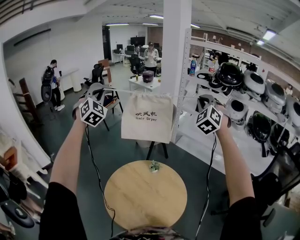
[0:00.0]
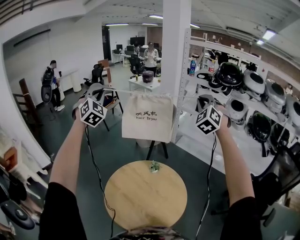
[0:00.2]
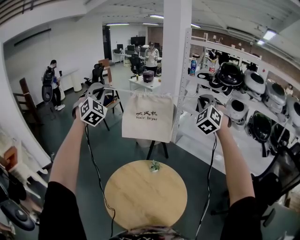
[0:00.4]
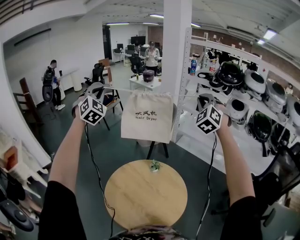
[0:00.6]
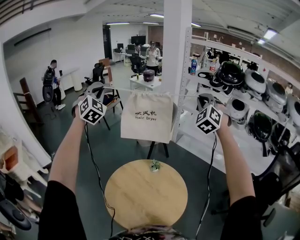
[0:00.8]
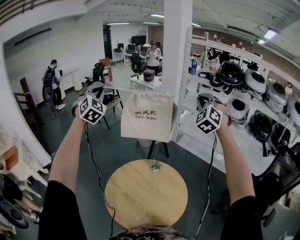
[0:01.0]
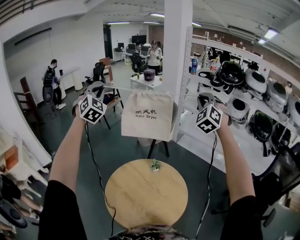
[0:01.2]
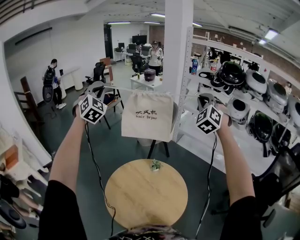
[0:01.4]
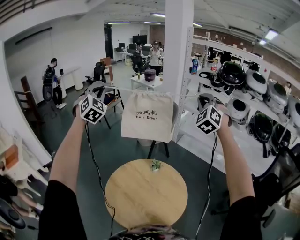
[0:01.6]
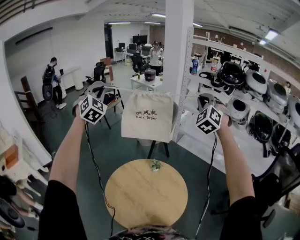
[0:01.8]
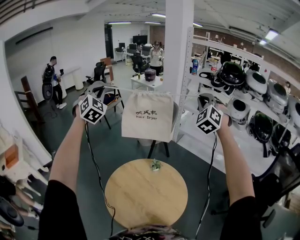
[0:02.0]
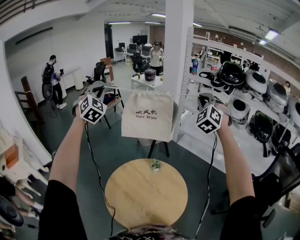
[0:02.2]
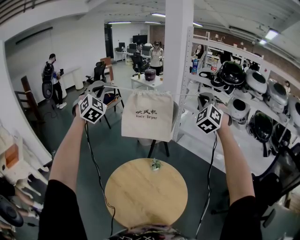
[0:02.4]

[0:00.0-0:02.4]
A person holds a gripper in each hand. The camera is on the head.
0:00.0 to 0:02.4: Neither gripper changes place.

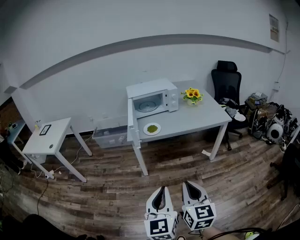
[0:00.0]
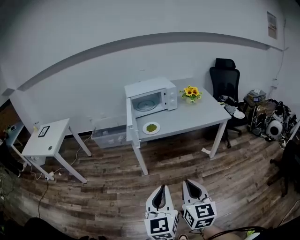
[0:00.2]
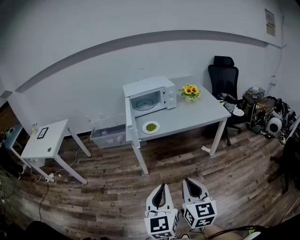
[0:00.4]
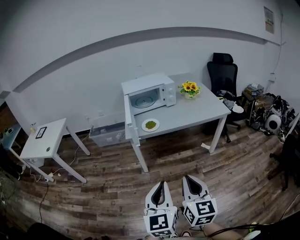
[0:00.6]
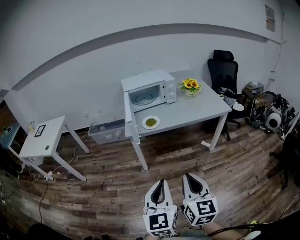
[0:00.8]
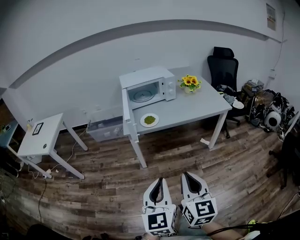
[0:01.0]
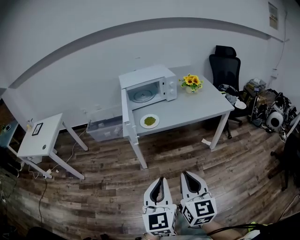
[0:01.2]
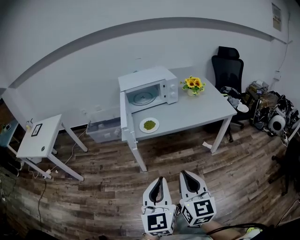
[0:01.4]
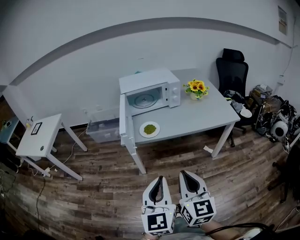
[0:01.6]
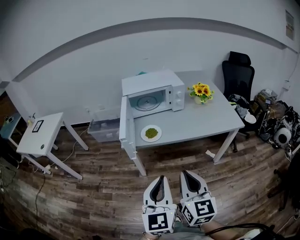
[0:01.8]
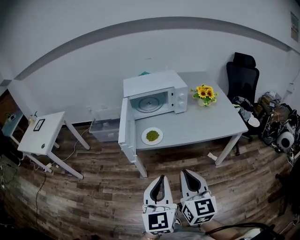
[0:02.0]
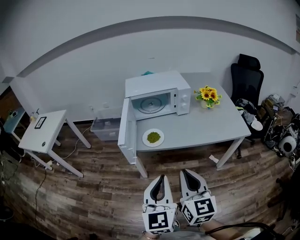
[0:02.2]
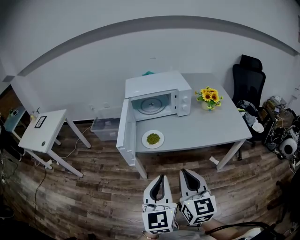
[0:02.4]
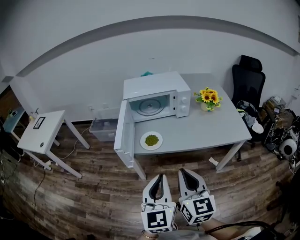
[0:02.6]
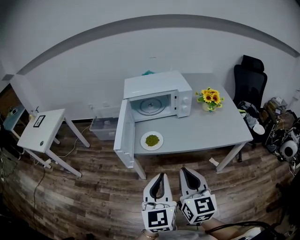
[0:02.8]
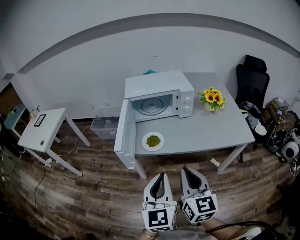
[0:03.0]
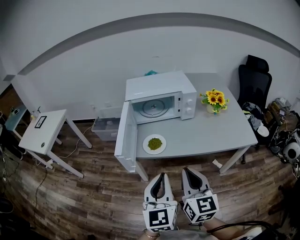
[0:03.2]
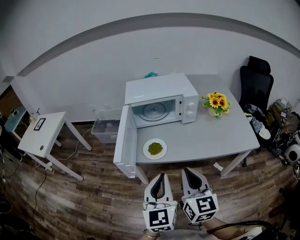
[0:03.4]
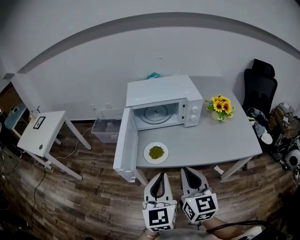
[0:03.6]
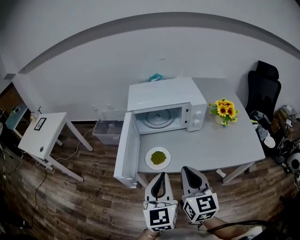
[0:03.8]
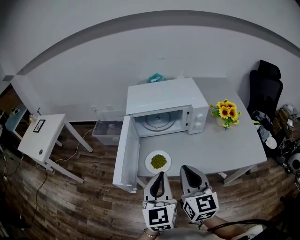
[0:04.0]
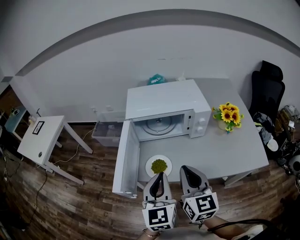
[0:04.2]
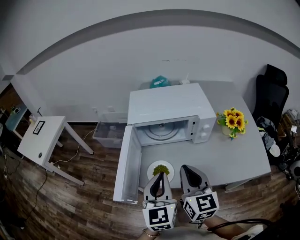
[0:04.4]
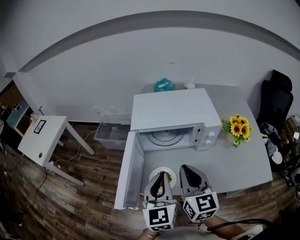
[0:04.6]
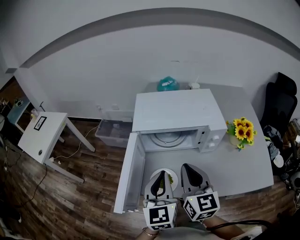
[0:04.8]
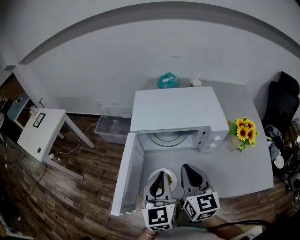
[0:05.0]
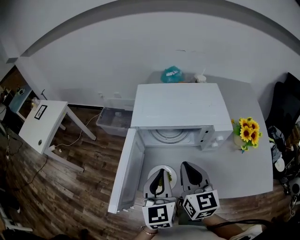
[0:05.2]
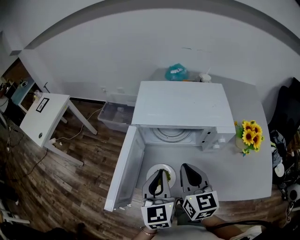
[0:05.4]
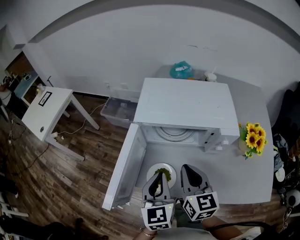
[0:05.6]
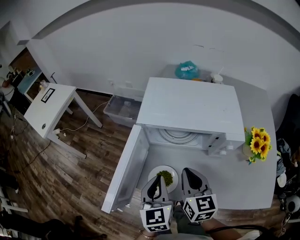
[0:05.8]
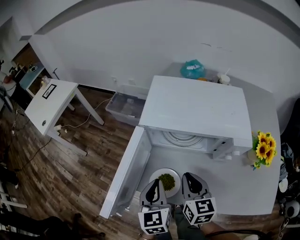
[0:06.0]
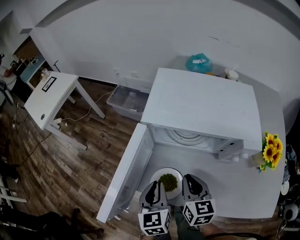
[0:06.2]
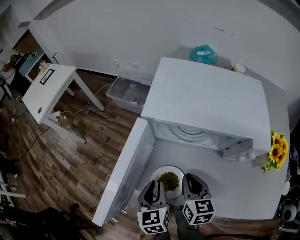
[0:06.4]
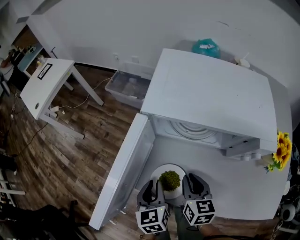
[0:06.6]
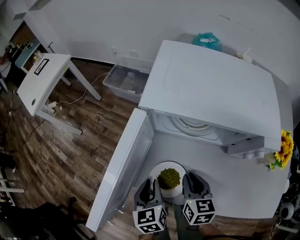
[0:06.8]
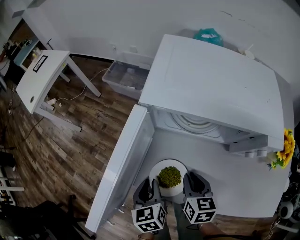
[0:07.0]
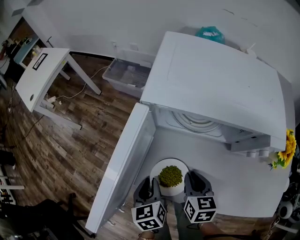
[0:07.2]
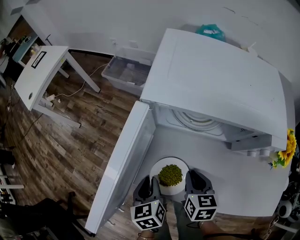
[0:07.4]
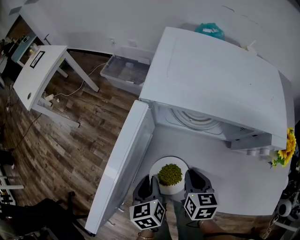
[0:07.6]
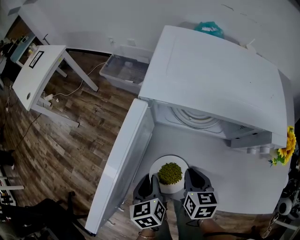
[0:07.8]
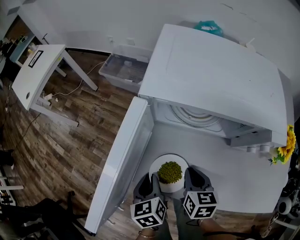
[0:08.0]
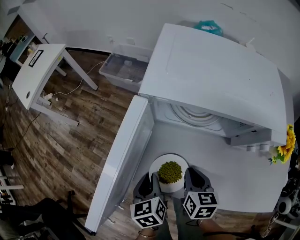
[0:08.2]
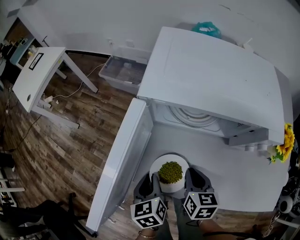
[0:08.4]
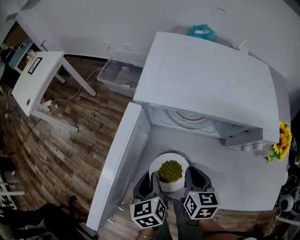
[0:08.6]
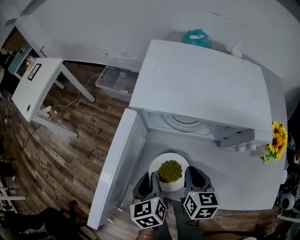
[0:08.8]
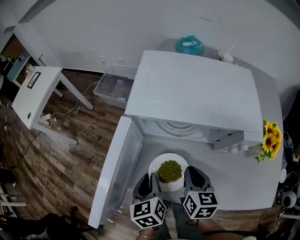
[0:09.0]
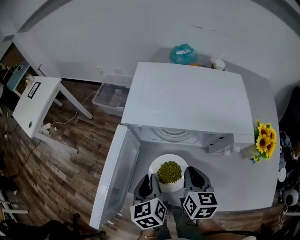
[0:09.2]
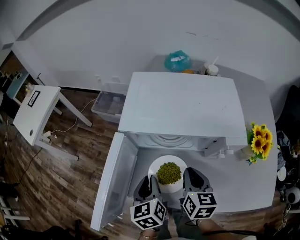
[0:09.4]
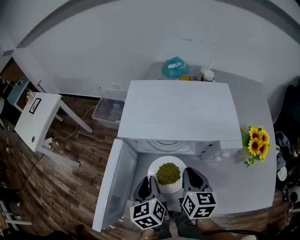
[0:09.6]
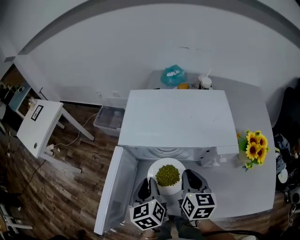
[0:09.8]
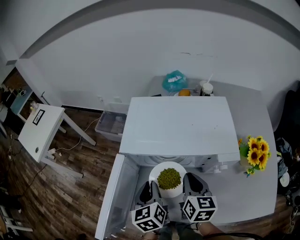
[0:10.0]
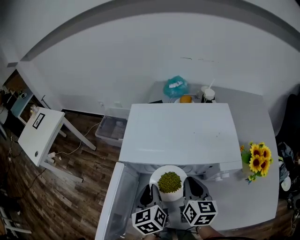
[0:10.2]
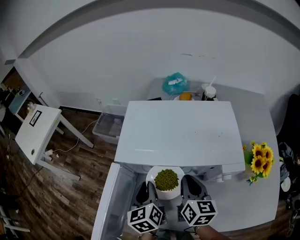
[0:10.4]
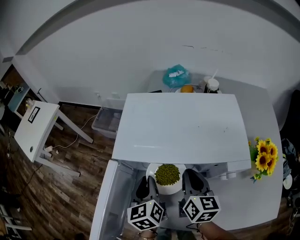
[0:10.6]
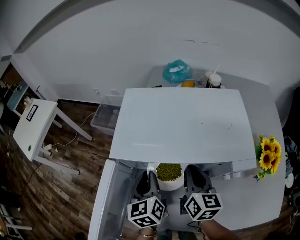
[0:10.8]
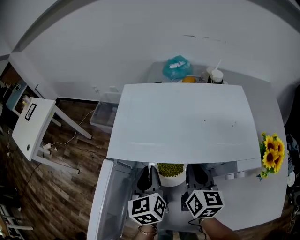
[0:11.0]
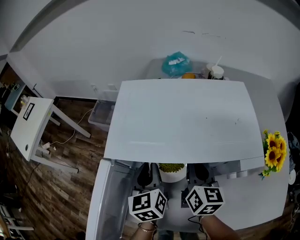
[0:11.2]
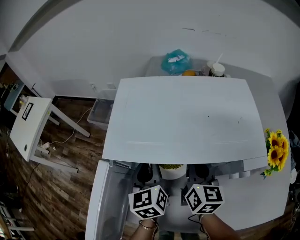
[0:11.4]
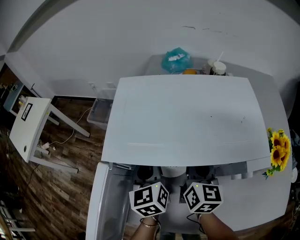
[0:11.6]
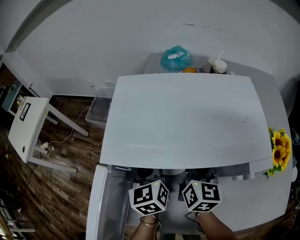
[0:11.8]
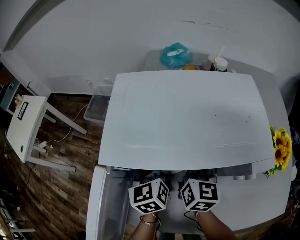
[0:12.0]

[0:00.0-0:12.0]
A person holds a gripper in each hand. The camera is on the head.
0:00.0 to 0:01.6: Both grippers move forward, about 15 cm.
0:01.6 to 0:03.0: The two grippers go about 15 cm forward.
0:03.0 to 0:04.4: Both grippers move forward, about 25 cm.
0:04.4 to 0:06.0: The grippers both shift downward and forward by about 15 cm. The left gripper turns by roughly 20 degrees, while the right gripper swivels about 20 degrees.
0:06.0 to 0:07.6: Both grippers move downward, approximately 15 cm. The left gripper changes its angle by roughly 30 degrees. The right gripper rotates roughly 20 degrees.
0:07.6 to 0:09.0: The grippers both shift upward by approximately 10 cm.
0:09.0 to 0:10.4: The two grippers go roughly 10 cm forward and upward.
0:10.4 to 0:12.0: Both grippers travel together forward, approximately 10 cm.

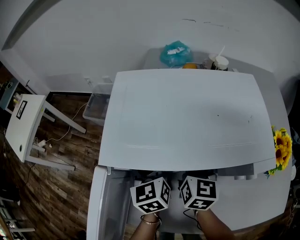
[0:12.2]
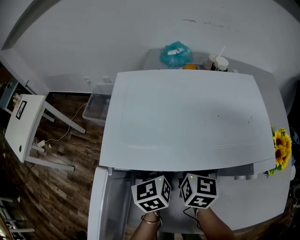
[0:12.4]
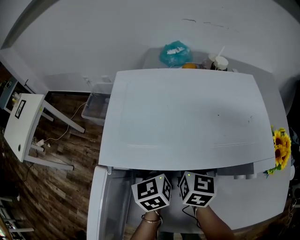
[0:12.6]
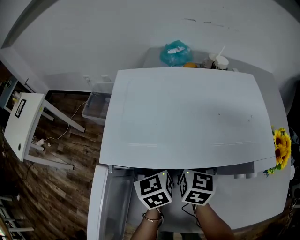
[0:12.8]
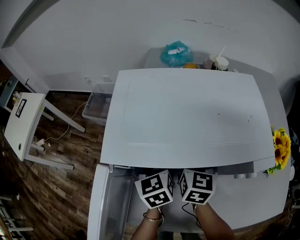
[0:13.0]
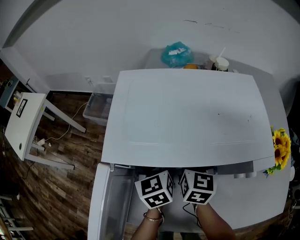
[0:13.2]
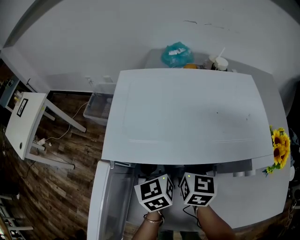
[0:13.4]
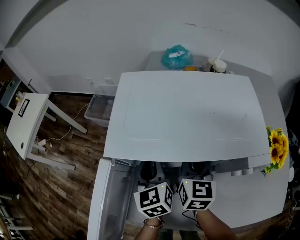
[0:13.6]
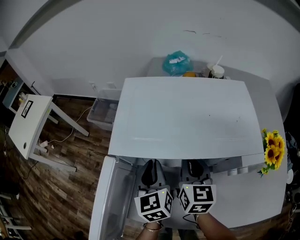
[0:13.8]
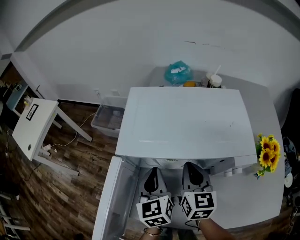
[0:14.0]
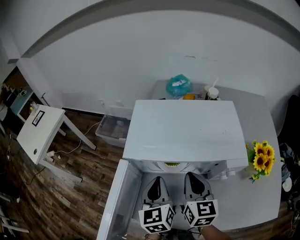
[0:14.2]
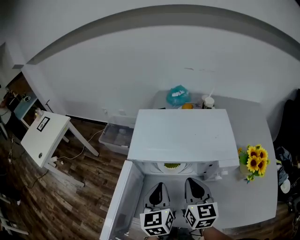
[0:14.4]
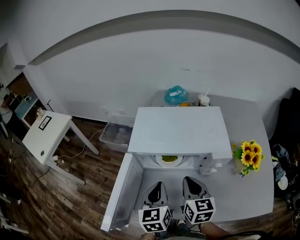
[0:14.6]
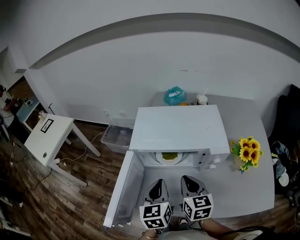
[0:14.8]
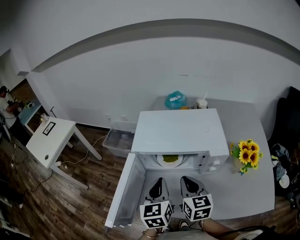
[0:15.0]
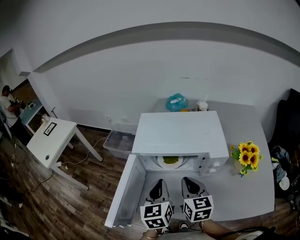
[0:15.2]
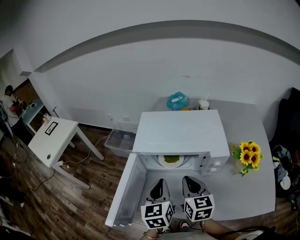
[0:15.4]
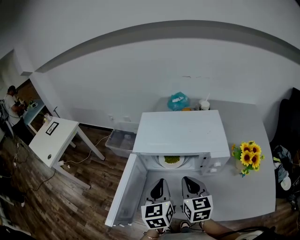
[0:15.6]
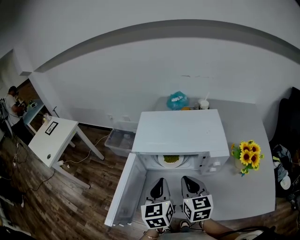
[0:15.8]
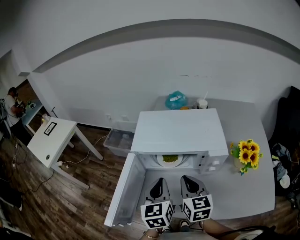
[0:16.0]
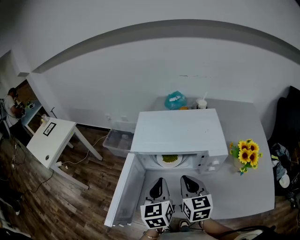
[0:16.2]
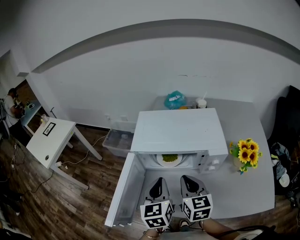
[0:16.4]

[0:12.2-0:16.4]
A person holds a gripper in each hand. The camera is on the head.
0:12.2 to 0:13.6: The grippers stay close to where they were, moving slightly.
0:13.6 to 0:15.0: Both grippers move backward and upward, some 20 cm.
0:15.0 to 0:16.4: Both grippers stay about where they are.

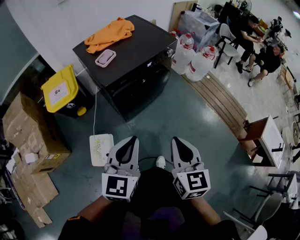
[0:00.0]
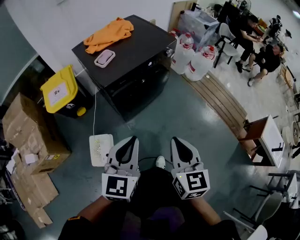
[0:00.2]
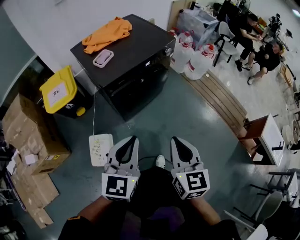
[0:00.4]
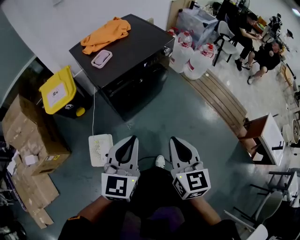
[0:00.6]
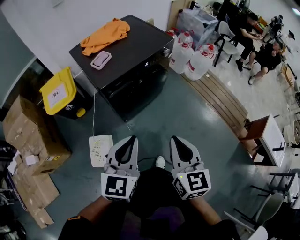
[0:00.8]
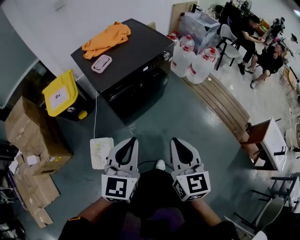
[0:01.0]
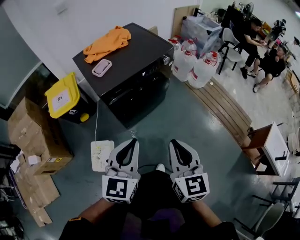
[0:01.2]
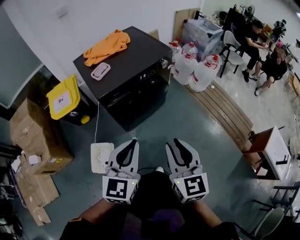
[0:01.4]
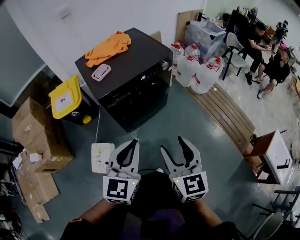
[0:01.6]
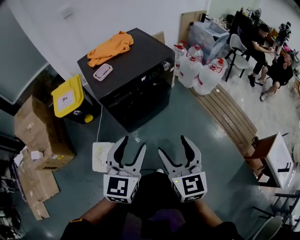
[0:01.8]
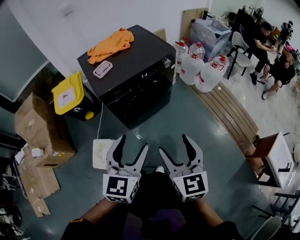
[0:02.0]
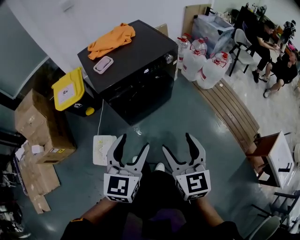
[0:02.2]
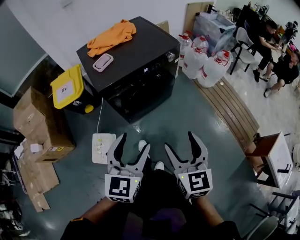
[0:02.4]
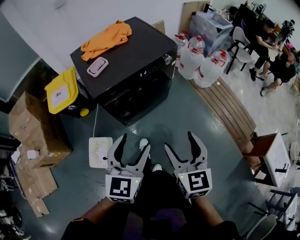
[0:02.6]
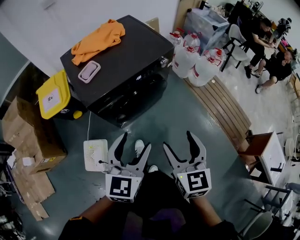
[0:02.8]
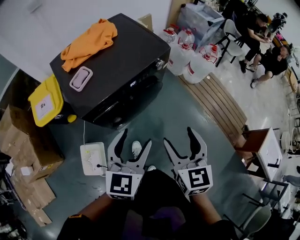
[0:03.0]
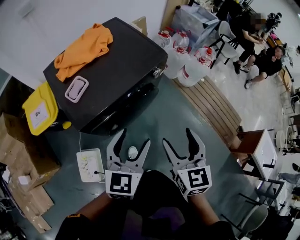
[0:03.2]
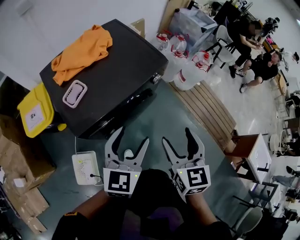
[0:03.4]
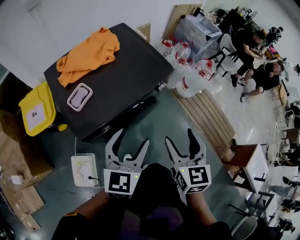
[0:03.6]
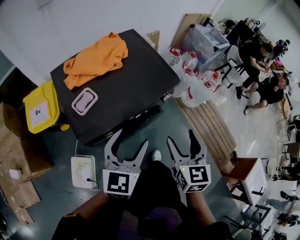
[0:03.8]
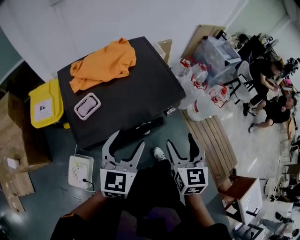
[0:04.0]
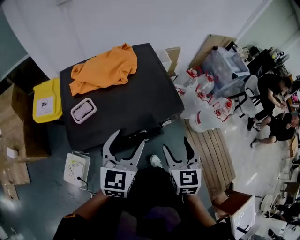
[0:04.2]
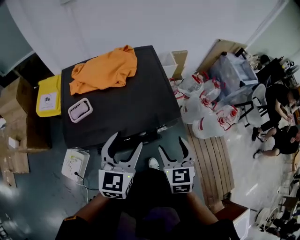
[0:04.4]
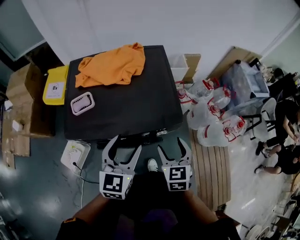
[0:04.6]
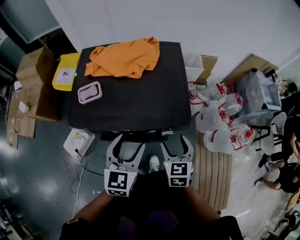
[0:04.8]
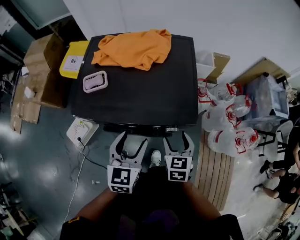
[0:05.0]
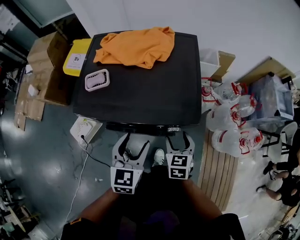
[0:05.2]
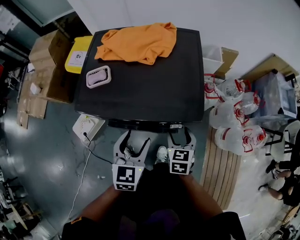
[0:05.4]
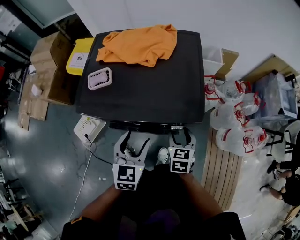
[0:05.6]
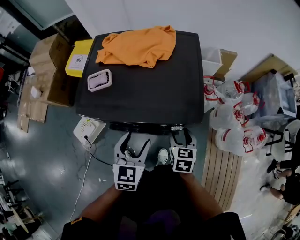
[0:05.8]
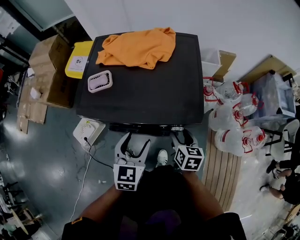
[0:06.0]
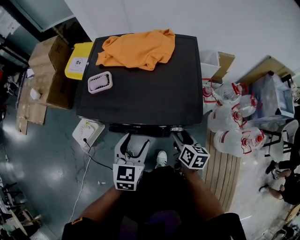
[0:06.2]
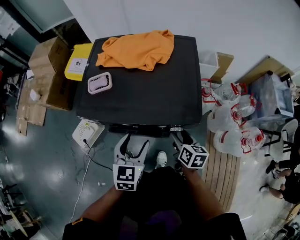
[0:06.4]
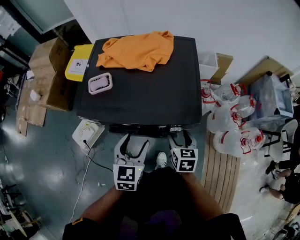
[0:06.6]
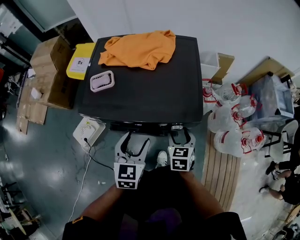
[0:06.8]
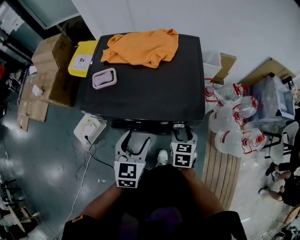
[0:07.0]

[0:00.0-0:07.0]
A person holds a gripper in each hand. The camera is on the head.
0:00.0 to 0:01.4: Both grippers move to the right, about 5 cm.
0:01.4 to 0:02.8: The grippers both shift forward by roughly 10 cm. The right gripper opens its fingers; the left gripper opens.
0:02.8 to 0:04.2: The grippers both shift forward by some 30 cm.
0:04.2 to 0:05.6: Both grippers move downward, approximately 15 cm. The left gripper changes its angle by some 30 degrees. The right gripper swivels approximately 20 degrees.
